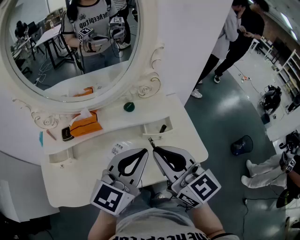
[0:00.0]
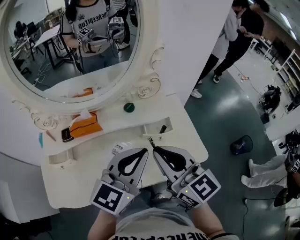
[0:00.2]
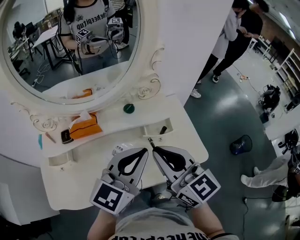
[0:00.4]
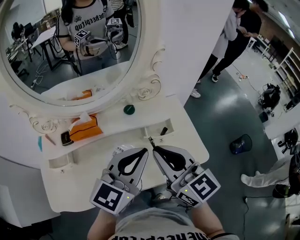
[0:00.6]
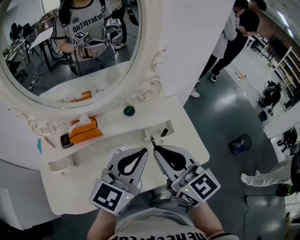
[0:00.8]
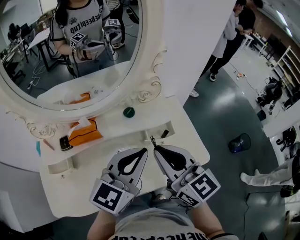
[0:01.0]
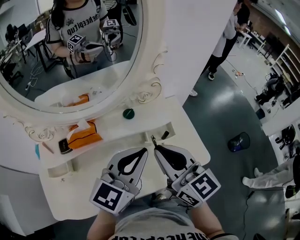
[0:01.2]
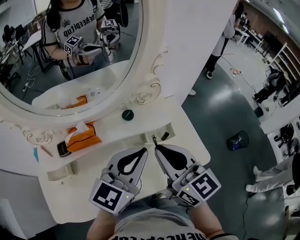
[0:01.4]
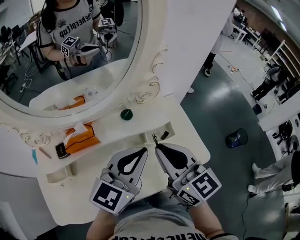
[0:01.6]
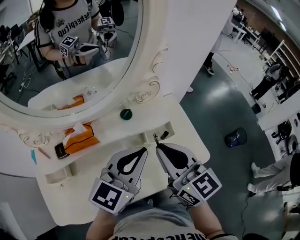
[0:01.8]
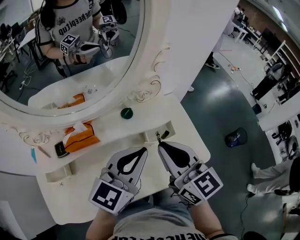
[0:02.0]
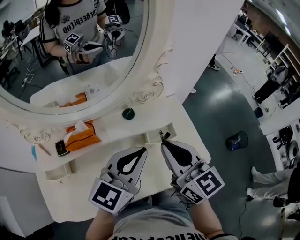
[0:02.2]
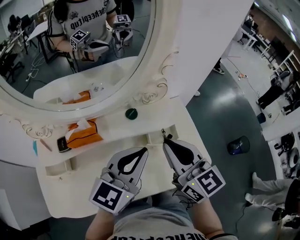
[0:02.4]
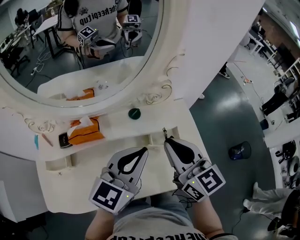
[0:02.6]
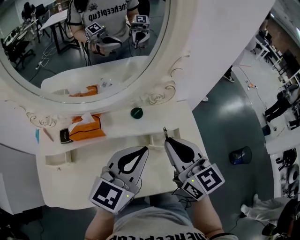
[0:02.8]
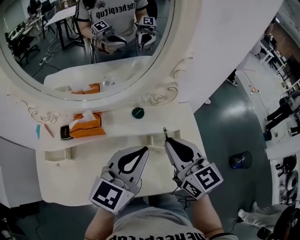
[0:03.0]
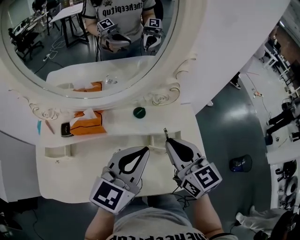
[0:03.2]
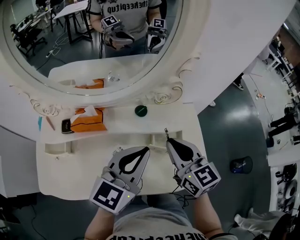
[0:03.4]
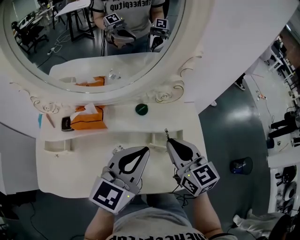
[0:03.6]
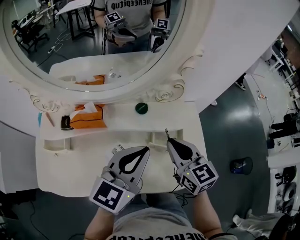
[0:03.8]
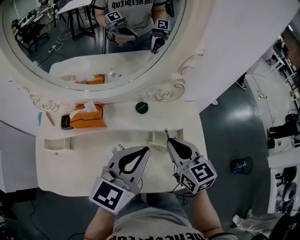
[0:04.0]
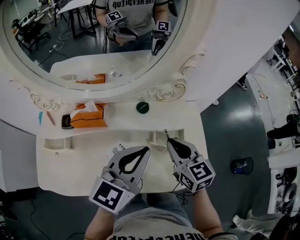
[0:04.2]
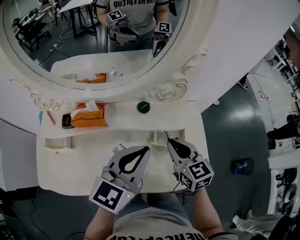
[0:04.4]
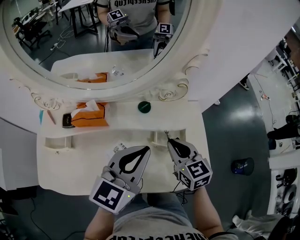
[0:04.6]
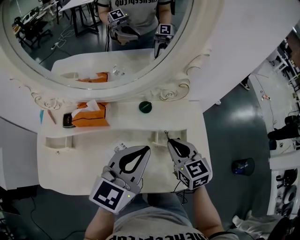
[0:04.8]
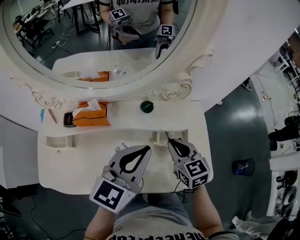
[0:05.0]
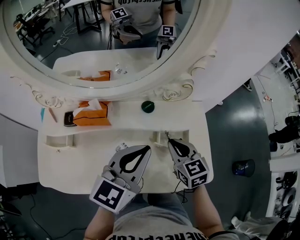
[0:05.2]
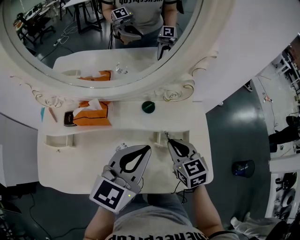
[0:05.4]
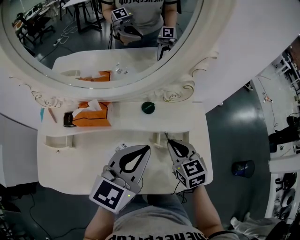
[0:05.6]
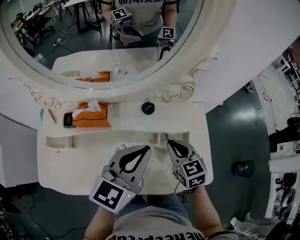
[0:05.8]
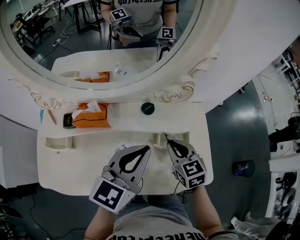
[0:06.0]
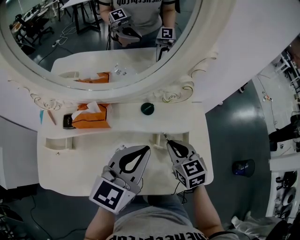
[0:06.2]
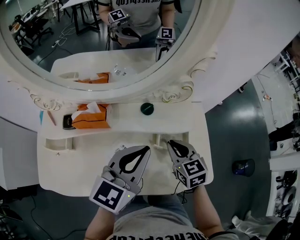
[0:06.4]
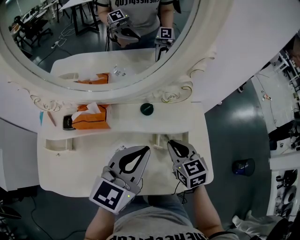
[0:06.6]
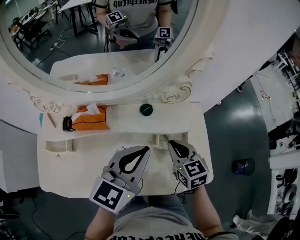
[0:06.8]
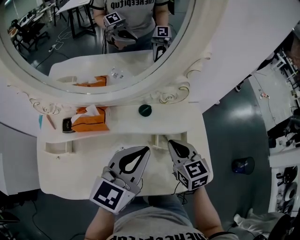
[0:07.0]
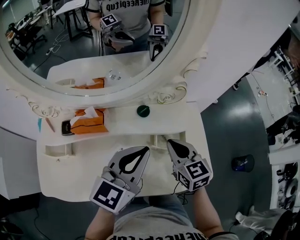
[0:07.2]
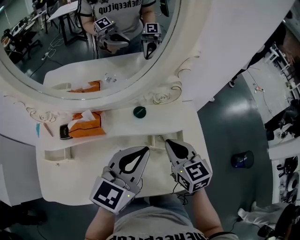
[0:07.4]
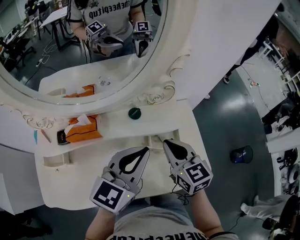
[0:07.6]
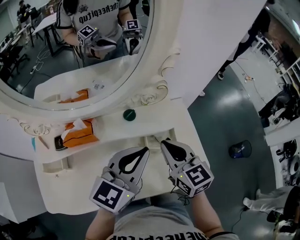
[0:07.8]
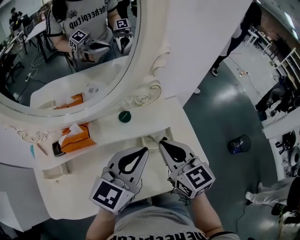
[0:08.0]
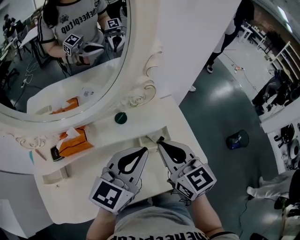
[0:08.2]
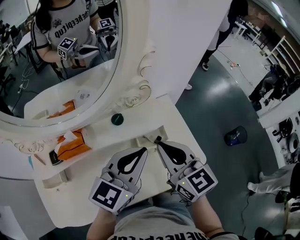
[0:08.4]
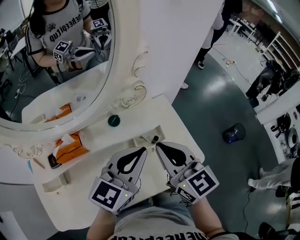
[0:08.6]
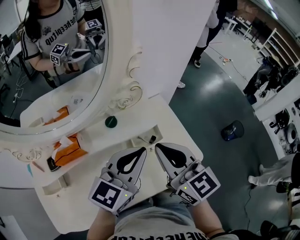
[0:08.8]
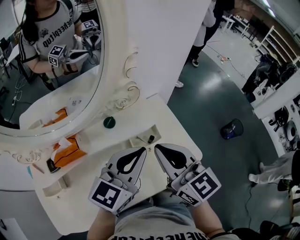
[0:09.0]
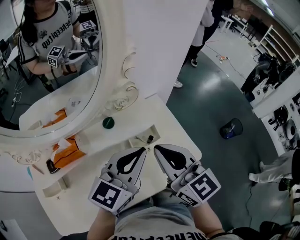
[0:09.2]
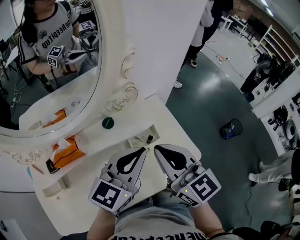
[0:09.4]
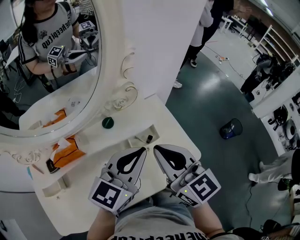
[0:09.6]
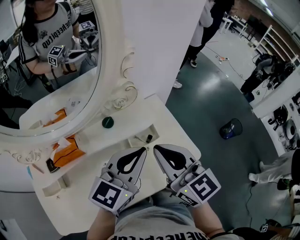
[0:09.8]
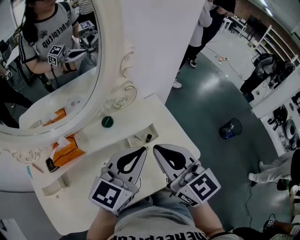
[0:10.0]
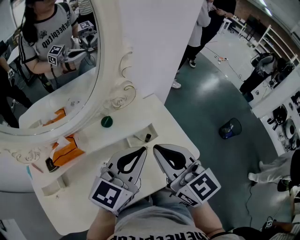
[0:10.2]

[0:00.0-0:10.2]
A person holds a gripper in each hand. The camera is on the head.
0:00.0 to 0:01.4: The two grippers go some 5 cm forward.
0:01.4 to 0:03.0: The right gripper heads forward, covering approximately 5 cm.
0:03.0 to 0:04.4: The right gripper shifts some 10 cm downward.
0:04.4 to 0:07.2: The grippers make only small movements.
0:07.2 to 0:08.8: The left gripper goes roughly 5 cm to the right, and swivels roughly 20 degrees; the right gripper moves upward, some 15 cm, and swivels approximately 20 degrees.
0:08.8 to 0:10.2: The grippers make only small movements.

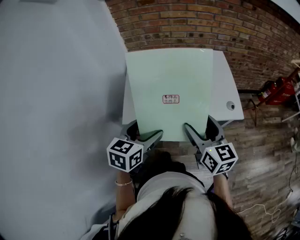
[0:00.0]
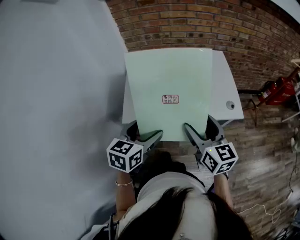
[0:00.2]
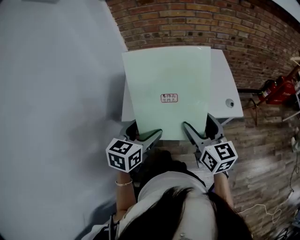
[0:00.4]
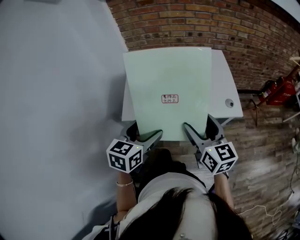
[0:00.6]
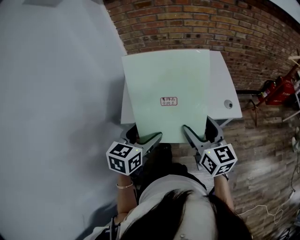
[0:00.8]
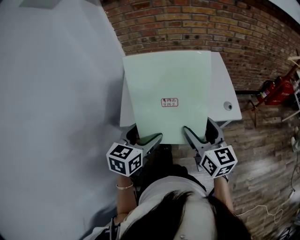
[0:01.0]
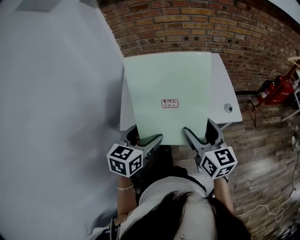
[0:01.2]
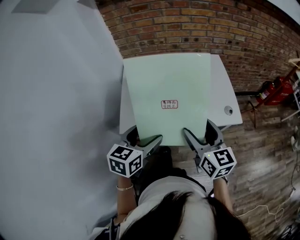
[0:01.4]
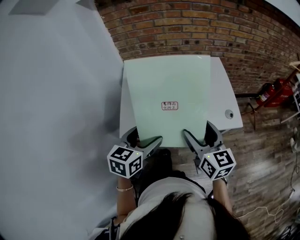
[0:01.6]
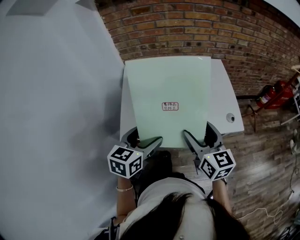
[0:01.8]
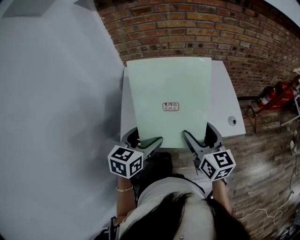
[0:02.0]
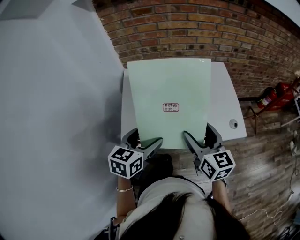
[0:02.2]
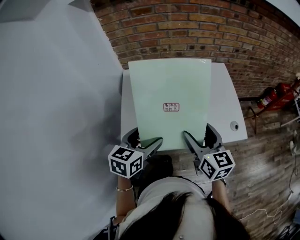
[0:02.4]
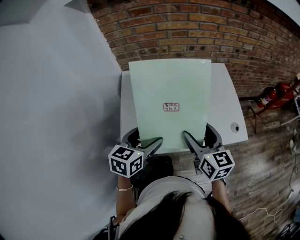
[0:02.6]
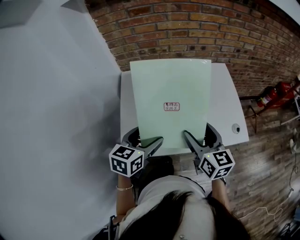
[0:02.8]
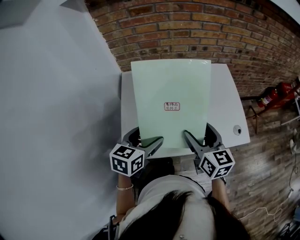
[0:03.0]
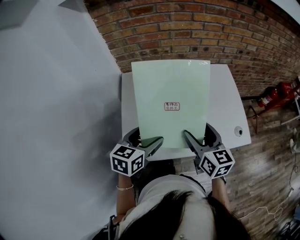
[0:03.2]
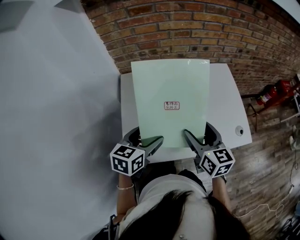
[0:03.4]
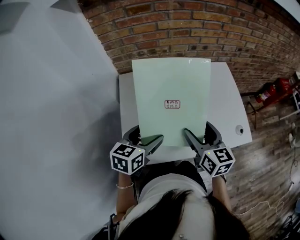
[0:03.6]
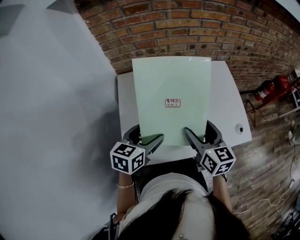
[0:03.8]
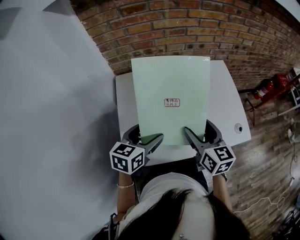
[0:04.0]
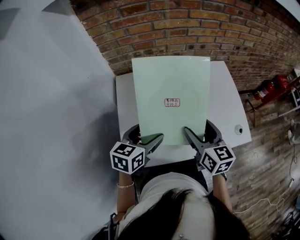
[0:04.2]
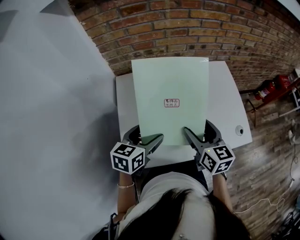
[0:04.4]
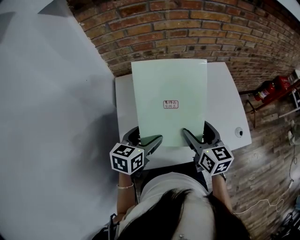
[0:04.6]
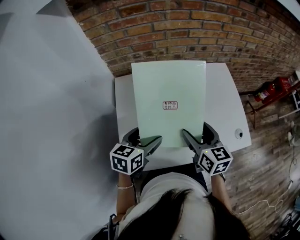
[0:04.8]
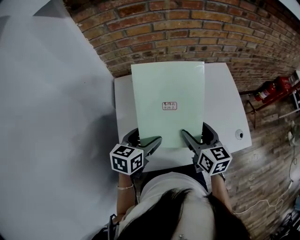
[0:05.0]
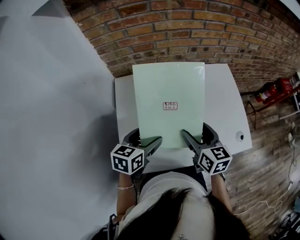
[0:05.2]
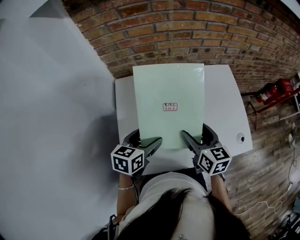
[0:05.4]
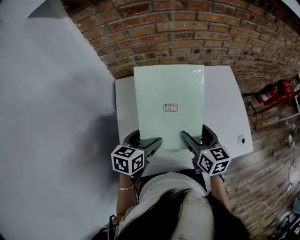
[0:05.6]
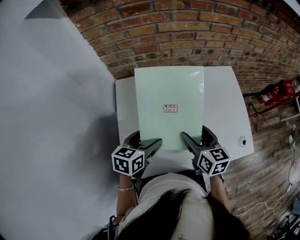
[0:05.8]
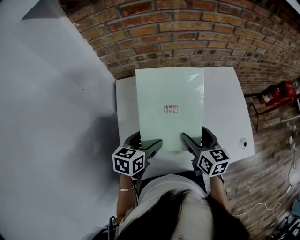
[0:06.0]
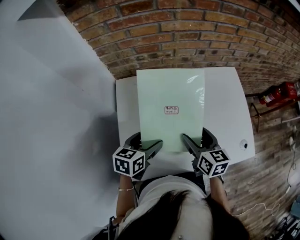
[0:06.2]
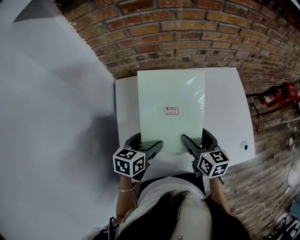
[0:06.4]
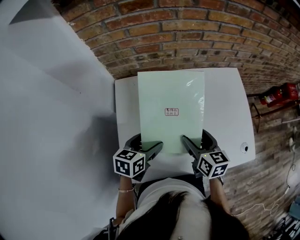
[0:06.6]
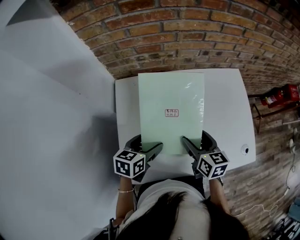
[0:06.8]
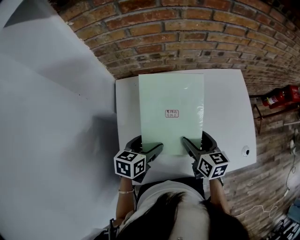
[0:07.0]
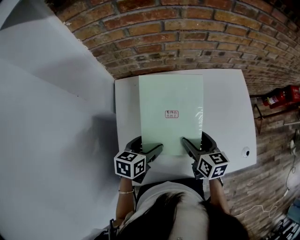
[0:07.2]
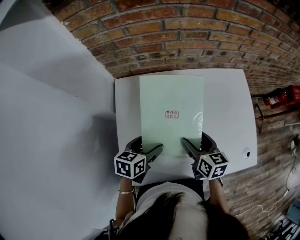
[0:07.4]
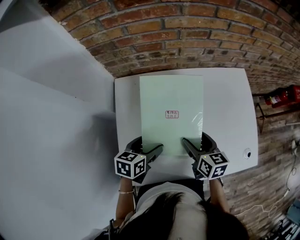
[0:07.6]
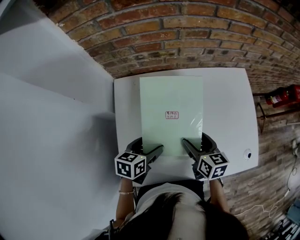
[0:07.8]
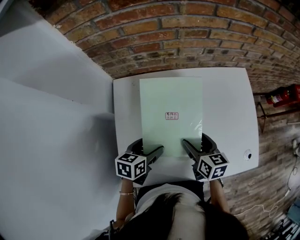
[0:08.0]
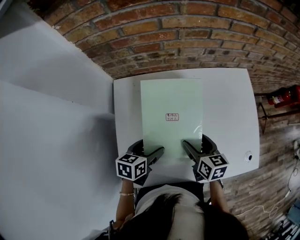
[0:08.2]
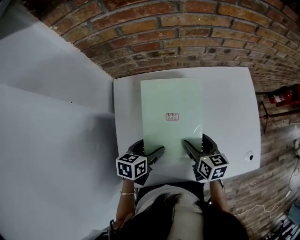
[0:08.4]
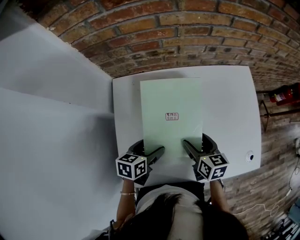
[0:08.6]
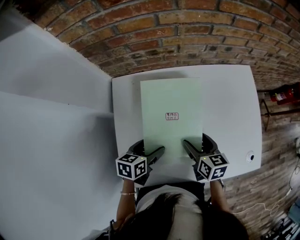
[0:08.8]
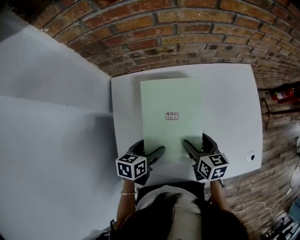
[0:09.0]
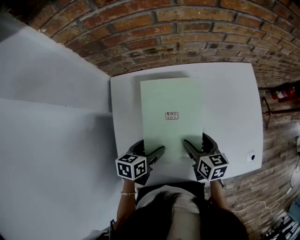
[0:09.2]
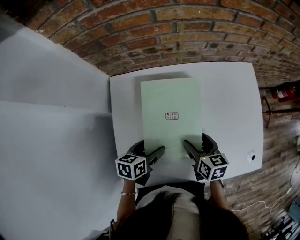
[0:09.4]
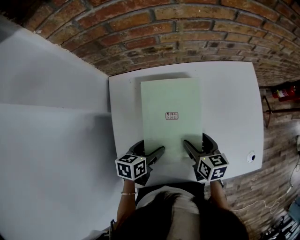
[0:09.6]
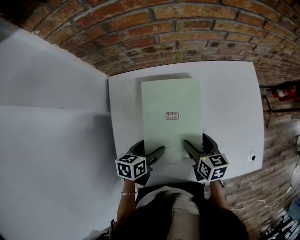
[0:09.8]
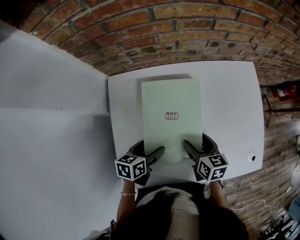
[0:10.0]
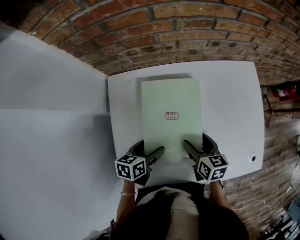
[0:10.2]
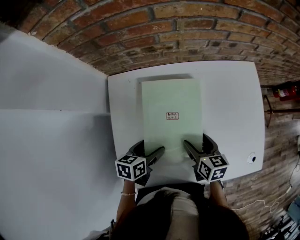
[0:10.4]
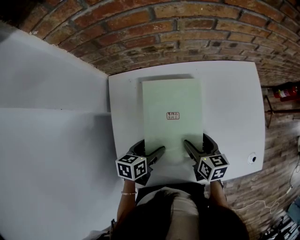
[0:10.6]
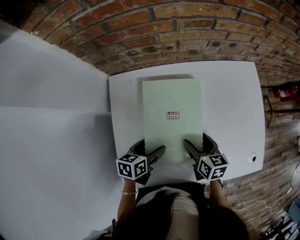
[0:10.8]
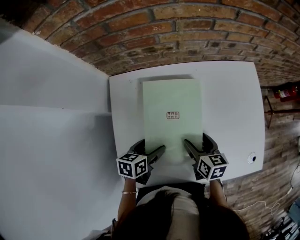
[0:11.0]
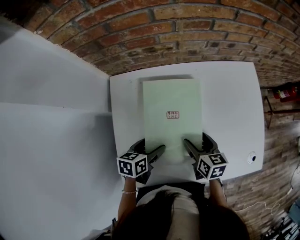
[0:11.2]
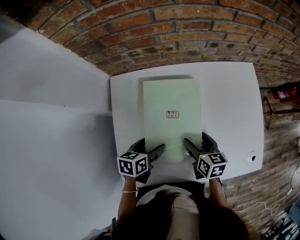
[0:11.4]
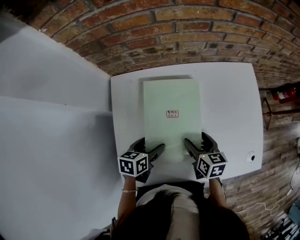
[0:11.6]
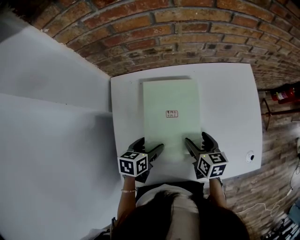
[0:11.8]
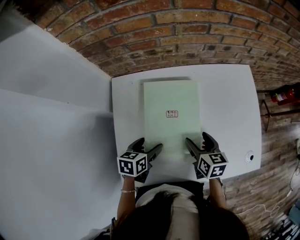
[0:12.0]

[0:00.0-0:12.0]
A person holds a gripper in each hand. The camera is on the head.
0:00.0 to 0:01.6: The grippers make only small movements.
0:01.6 to 0:03.0: Both grippers travel together forward, approximately 15 cm.
0:03.0 to 0:04.4: The two grippers go about 5 cm forward.
0:04.4 to 0:06.0: The right gripper is displaced forward and downward by about 10 cm; the left gripper goes roughly 5 cm downward and forward.
0:06.0 to 0:07.6: The grippers both shift downward by roughly 5 cm.
0:07.6 to 0:09.0: The grippers stay close to where they were, moving slightly.
0:09.0 to 0:12.0: The grippers move only a little.

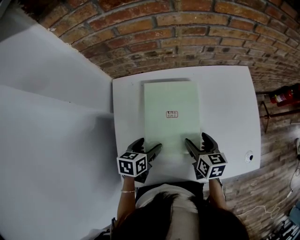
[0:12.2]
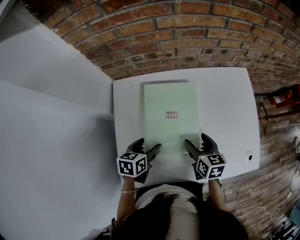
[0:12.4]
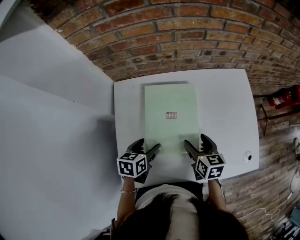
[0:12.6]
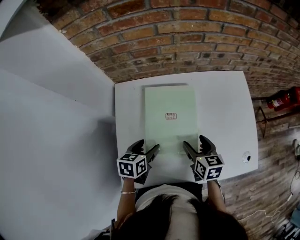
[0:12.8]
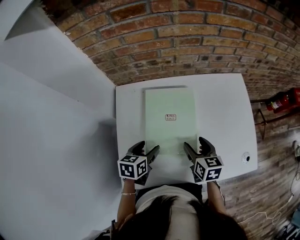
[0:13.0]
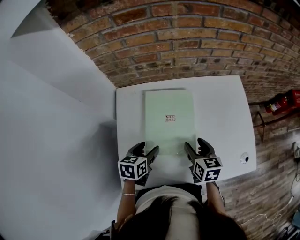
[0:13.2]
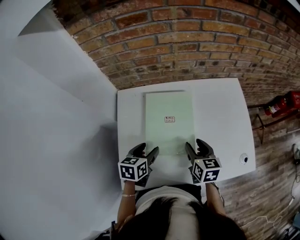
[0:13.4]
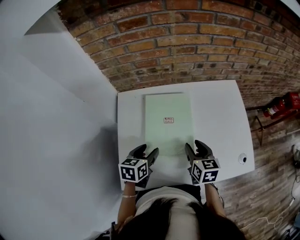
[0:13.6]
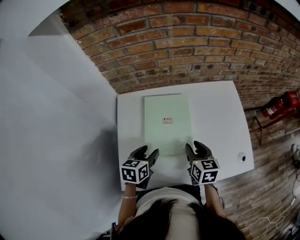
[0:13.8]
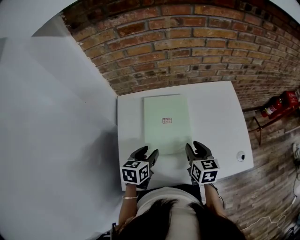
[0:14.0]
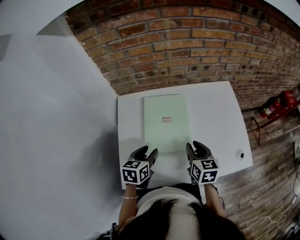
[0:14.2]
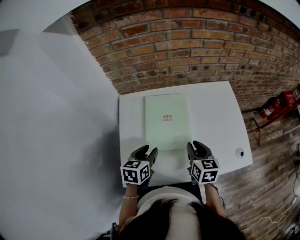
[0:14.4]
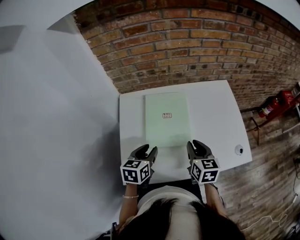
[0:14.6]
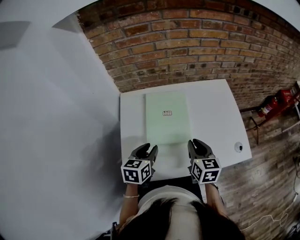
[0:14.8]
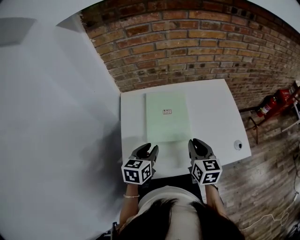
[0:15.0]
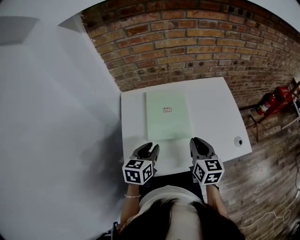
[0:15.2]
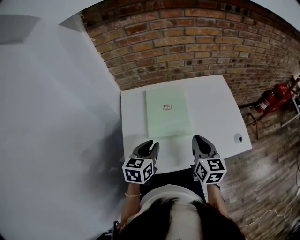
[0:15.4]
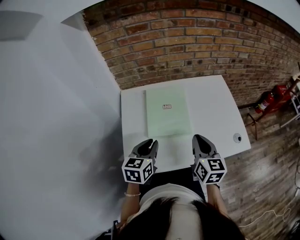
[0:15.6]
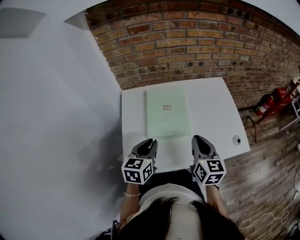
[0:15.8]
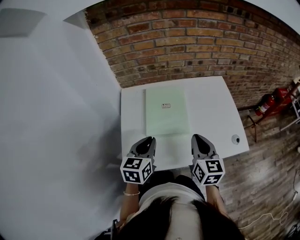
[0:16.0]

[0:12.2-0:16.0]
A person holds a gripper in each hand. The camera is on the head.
0:12.2 to 0:13.4: The right gripper closes its fingers.
0:13.4 to 0:14.8: The grippers both shift backward and upward by about 10 cm. The right gripper closes.
0:14.8 to 0:16.0: The right gripper moves upward and backward, roughly 10 cm, while the left gripper shifts about 5 cm upward.
